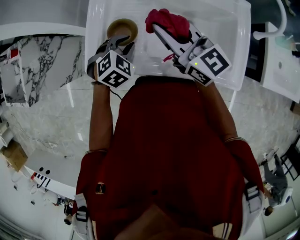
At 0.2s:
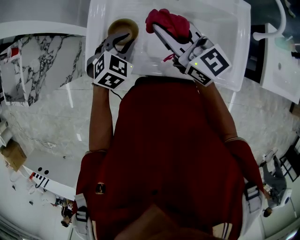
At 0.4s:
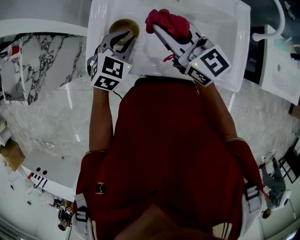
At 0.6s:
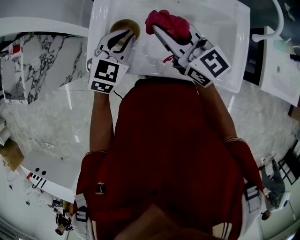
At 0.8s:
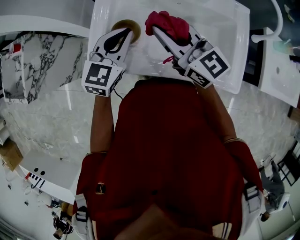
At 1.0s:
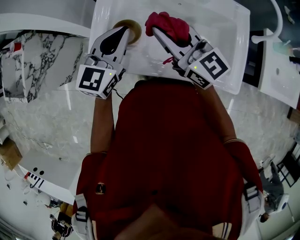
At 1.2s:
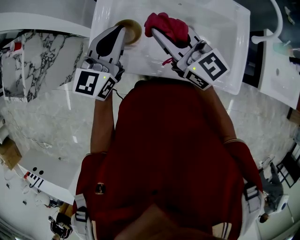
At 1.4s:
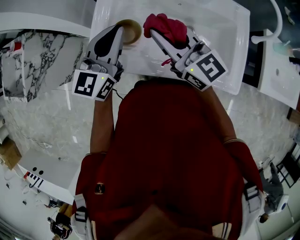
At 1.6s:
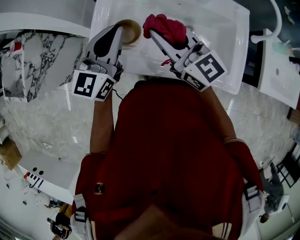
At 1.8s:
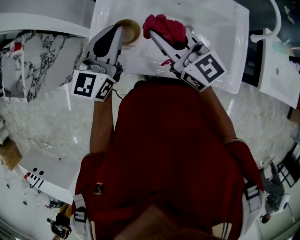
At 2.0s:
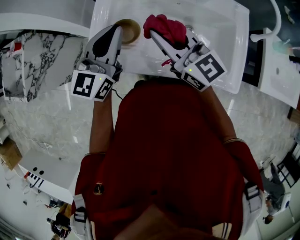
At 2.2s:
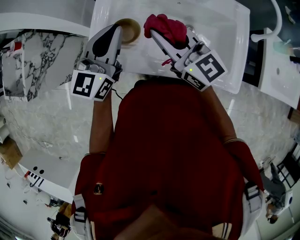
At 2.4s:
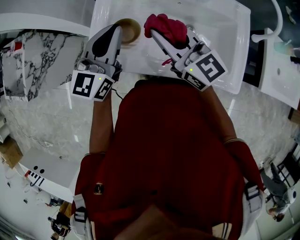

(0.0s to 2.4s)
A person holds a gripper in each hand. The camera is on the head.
0.0s - 1.2s: The left gripper is displaced upward by some 20 cm, and angles its fingers upward, by roughly 50 degrees.
1.2s - 2.4s: Both grippers stay put.

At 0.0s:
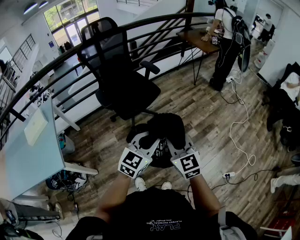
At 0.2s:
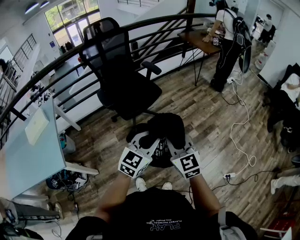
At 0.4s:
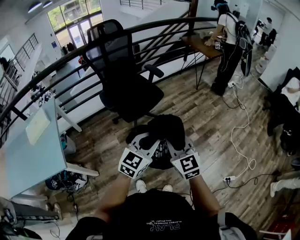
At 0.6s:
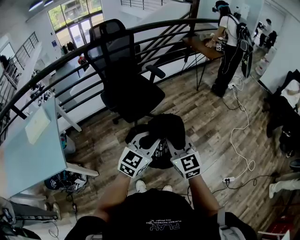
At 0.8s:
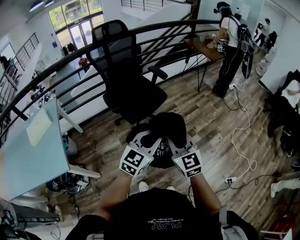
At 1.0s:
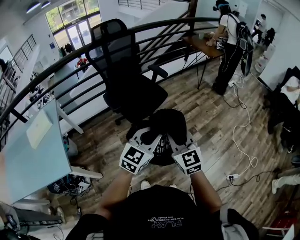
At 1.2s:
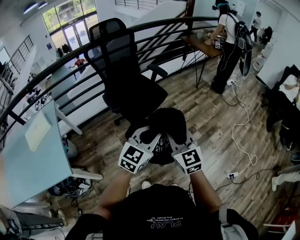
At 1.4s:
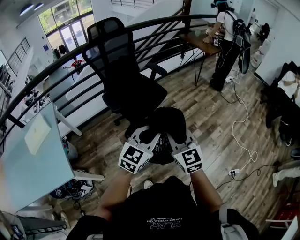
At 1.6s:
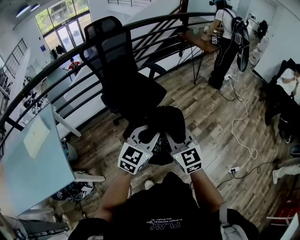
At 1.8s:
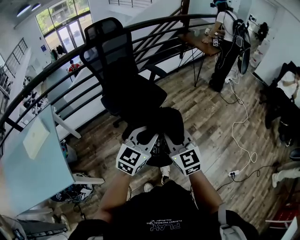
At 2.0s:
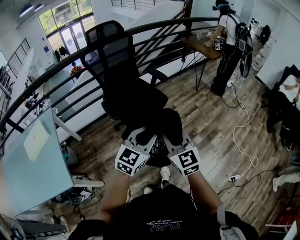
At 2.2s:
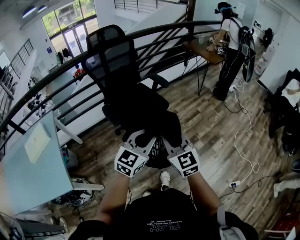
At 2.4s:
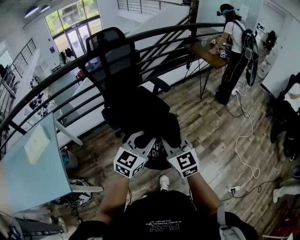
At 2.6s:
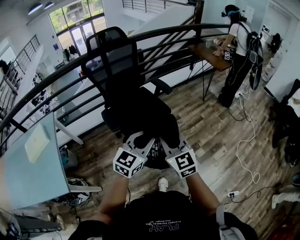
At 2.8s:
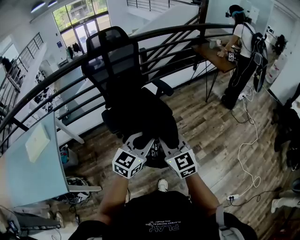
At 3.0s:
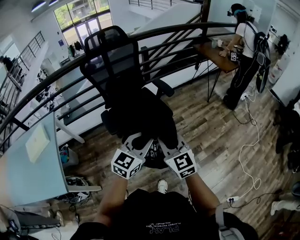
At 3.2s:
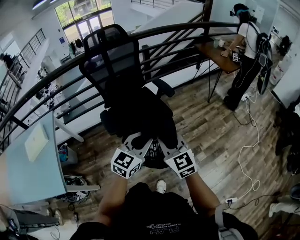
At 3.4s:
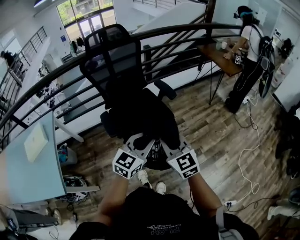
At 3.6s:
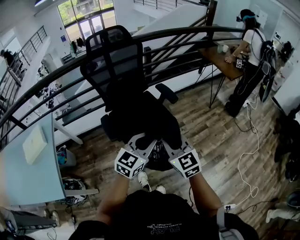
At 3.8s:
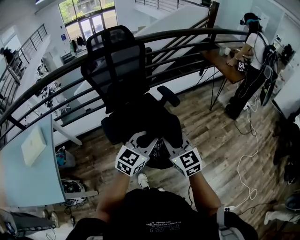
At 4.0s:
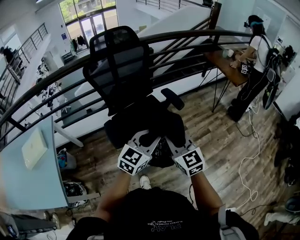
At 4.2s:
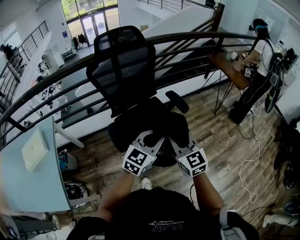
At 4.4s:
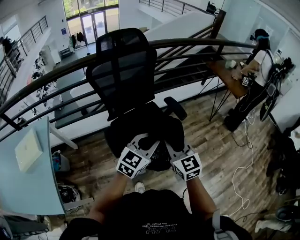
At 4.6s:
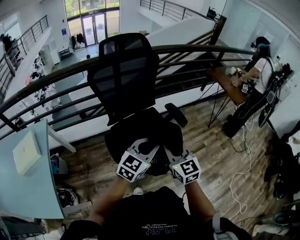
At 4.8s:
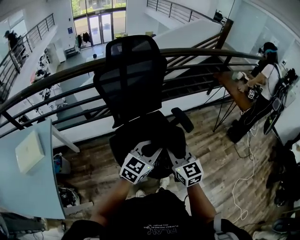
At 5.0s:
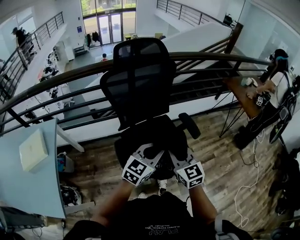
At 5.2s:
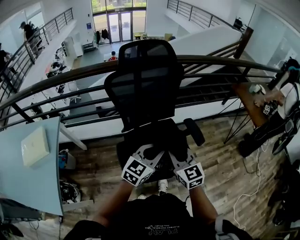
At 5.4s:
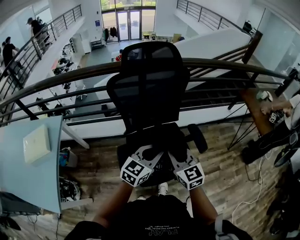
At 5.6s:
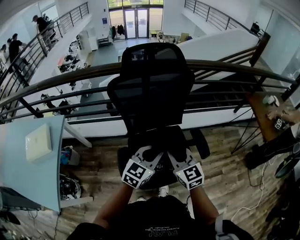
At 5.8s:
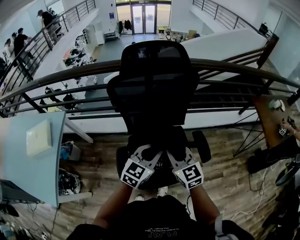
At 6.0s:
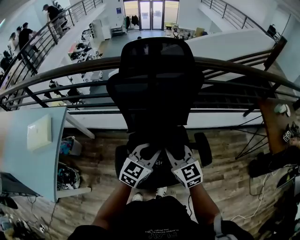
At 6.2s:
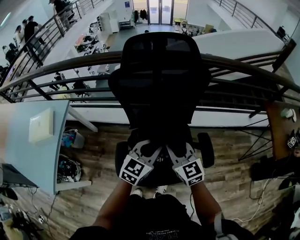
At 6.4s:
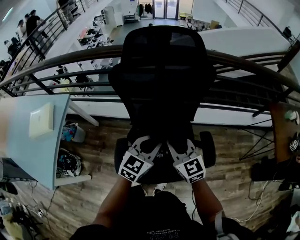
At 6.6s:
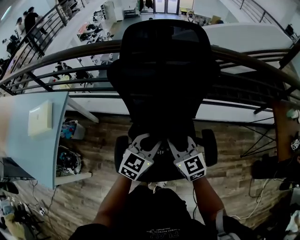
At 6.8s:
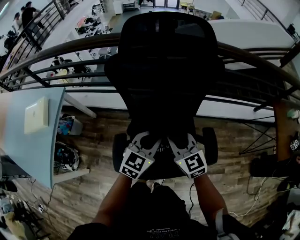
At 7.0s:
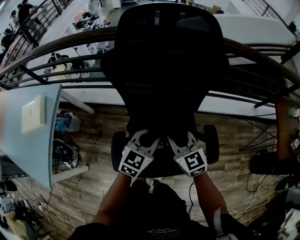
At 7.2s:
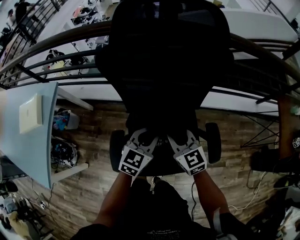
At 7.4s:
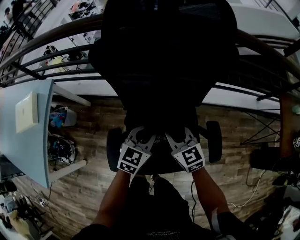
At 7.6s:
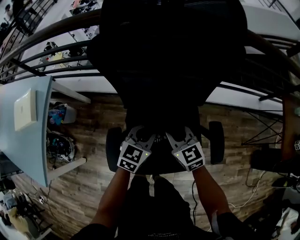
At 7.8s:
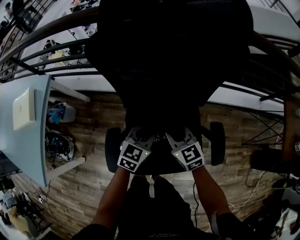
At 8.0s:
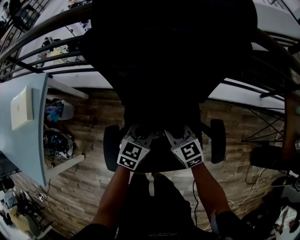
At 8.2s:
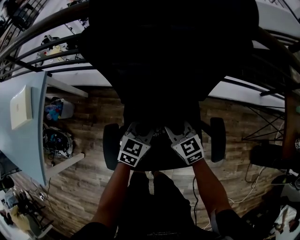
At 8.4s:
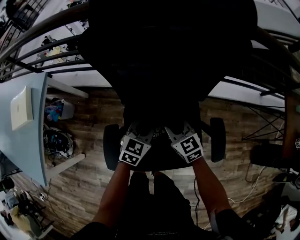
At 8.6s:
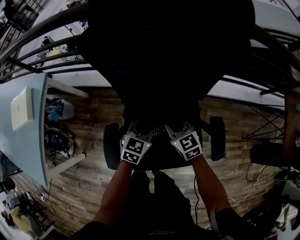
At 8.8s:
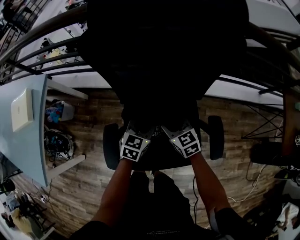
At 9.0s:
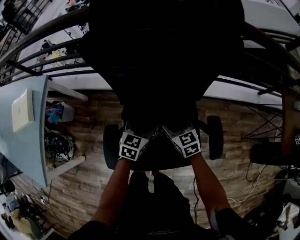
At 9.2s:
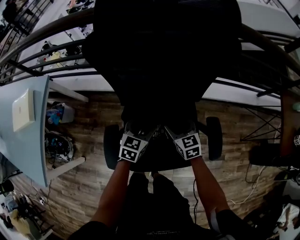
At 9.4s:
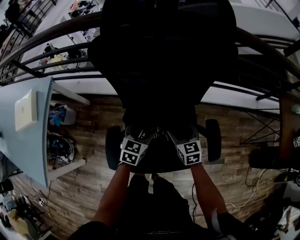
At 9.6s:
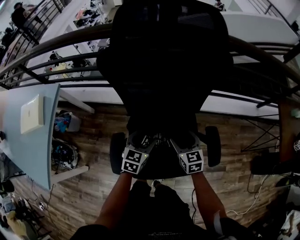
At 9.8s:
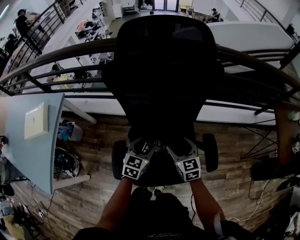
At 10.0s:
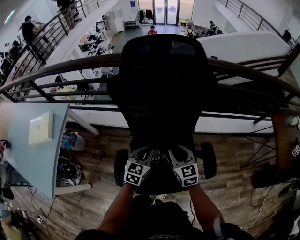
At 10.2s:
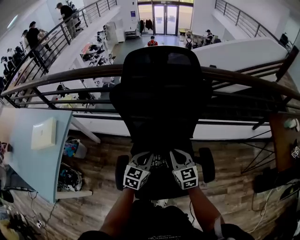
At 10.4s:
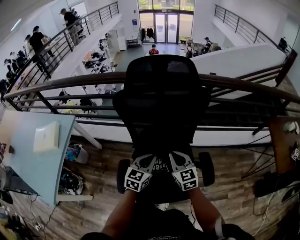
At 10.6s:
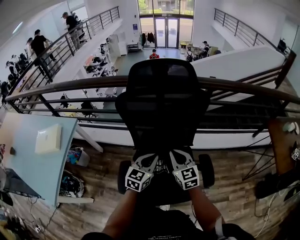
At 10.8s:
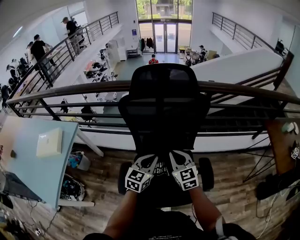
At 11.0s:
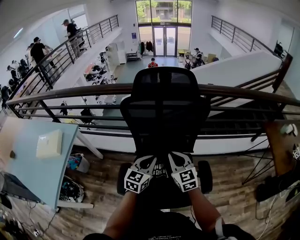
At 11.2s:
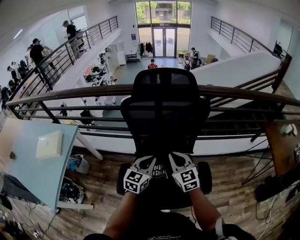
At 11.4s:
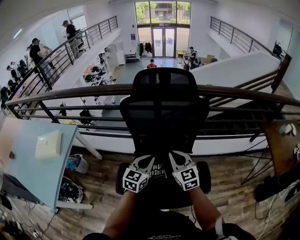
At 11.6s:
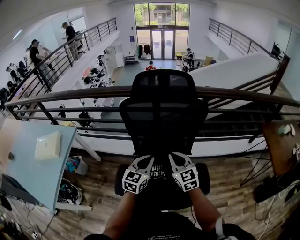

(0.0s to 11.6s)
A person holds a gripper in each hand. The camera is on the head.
0.0s - 1.4s: The two grippers go some 15 cm to the left.
1.4s - 2.8s: Both grippers move forward, roughly 20 cm.
2.8s - 4.4s: Both grippers move forward and to the left, roughly 25 cm.
4.4s - 5.8s: Both grippers move forward, some 20 cm. The left gripper swivels approximately 20 degrees; the right gripper changes its angle by approximately 20 degrees.
5.8s - 7.2s: Both grippers travel together downward and forward, about 15 cm.
7.2s - 8.8s: The grippers both shift downward by about 15 cm. The right gripper opens up; the left gripper opens up.
8.8s - 10.2s: The left gripper heads upward and backward, covering some 15 cm, and closes. Meanwhile the right gripper heads upward, covering about 15 cm, changes its angle by approximately 20 degrees, and closes its fingers.
10.2s - 11.6s: Both grippers move upward, about 10 cm.

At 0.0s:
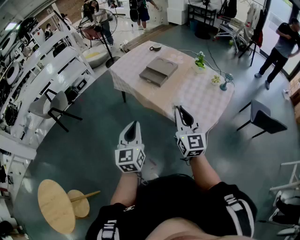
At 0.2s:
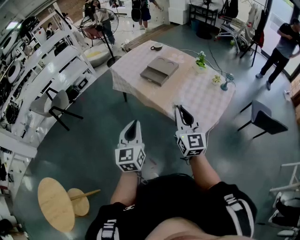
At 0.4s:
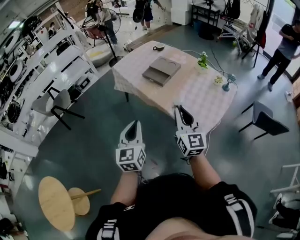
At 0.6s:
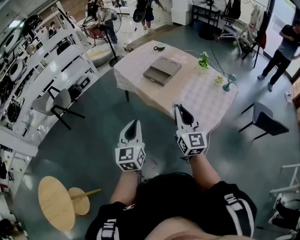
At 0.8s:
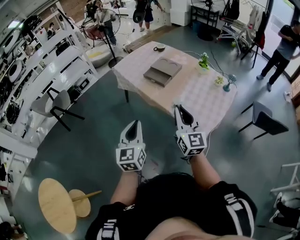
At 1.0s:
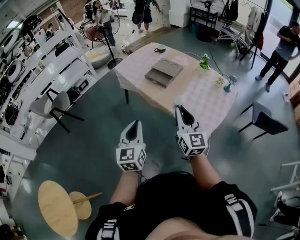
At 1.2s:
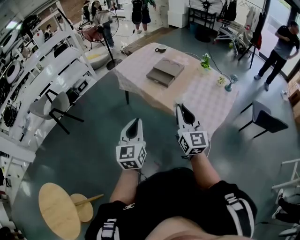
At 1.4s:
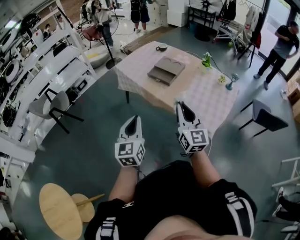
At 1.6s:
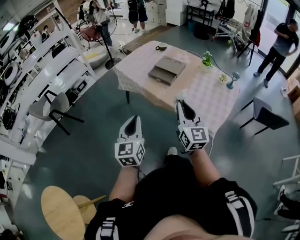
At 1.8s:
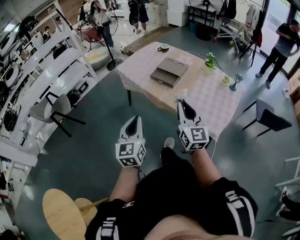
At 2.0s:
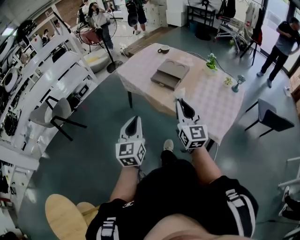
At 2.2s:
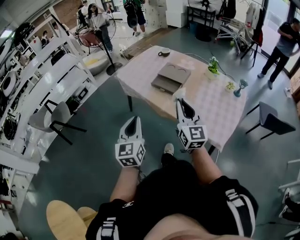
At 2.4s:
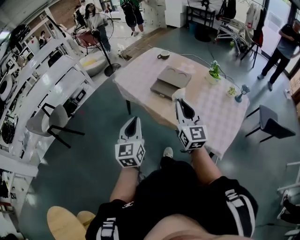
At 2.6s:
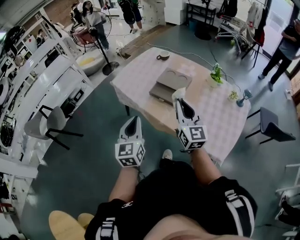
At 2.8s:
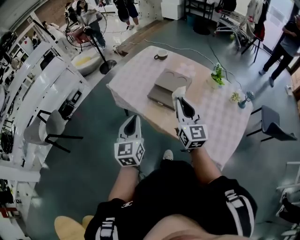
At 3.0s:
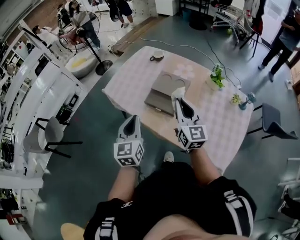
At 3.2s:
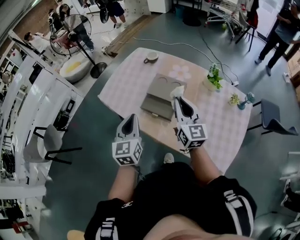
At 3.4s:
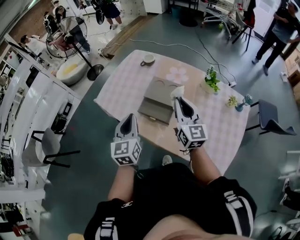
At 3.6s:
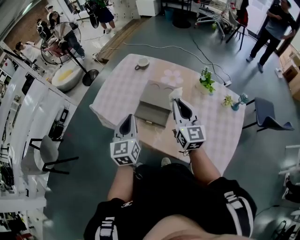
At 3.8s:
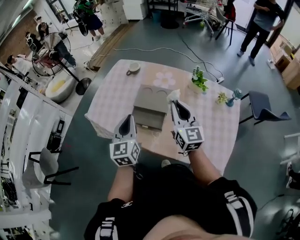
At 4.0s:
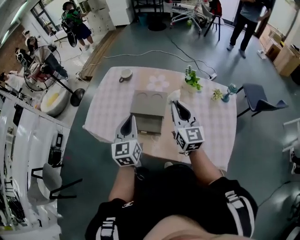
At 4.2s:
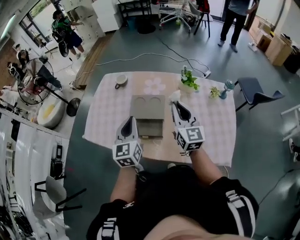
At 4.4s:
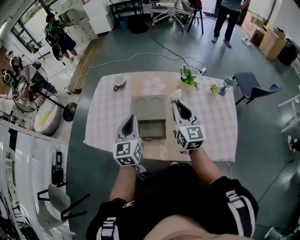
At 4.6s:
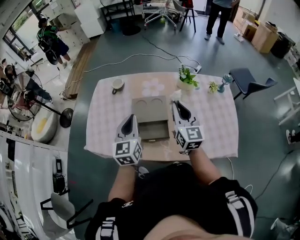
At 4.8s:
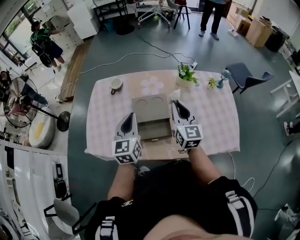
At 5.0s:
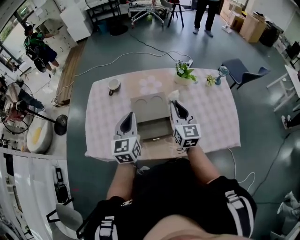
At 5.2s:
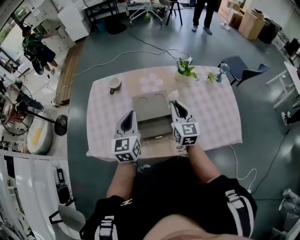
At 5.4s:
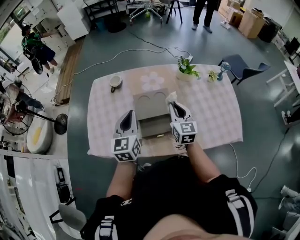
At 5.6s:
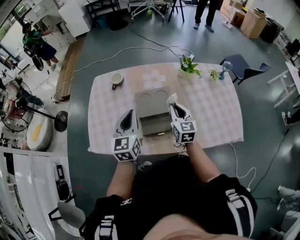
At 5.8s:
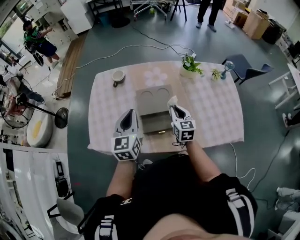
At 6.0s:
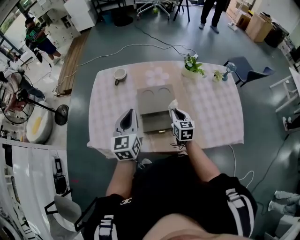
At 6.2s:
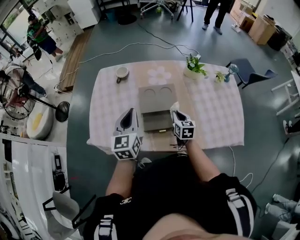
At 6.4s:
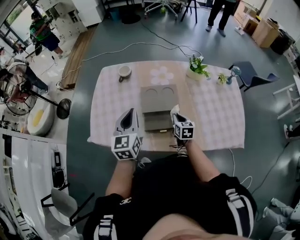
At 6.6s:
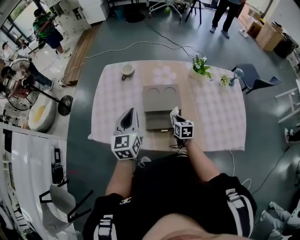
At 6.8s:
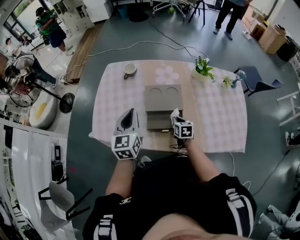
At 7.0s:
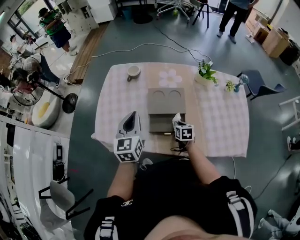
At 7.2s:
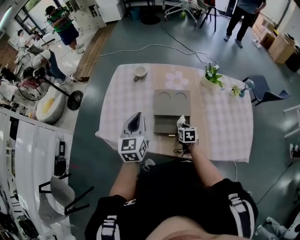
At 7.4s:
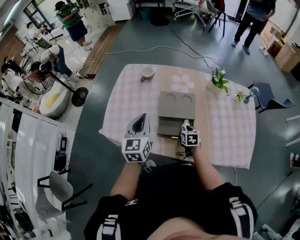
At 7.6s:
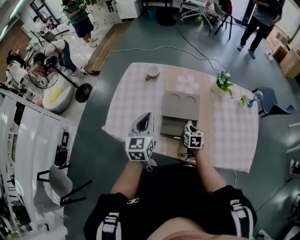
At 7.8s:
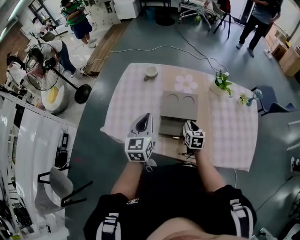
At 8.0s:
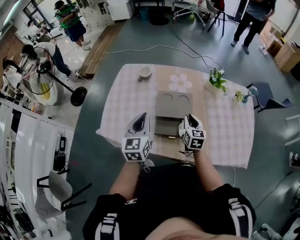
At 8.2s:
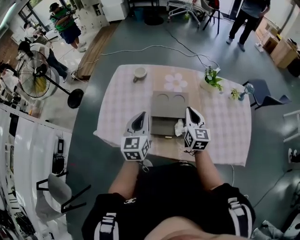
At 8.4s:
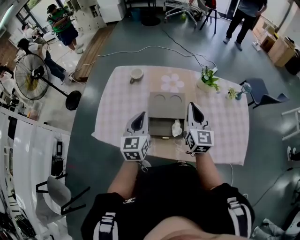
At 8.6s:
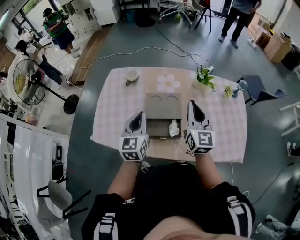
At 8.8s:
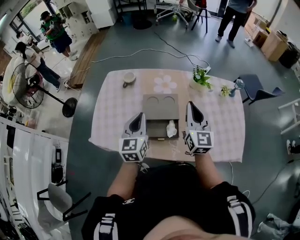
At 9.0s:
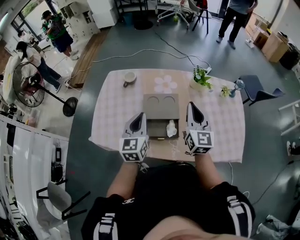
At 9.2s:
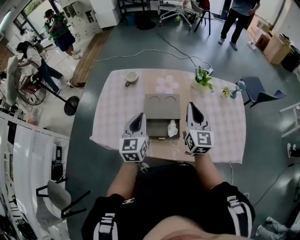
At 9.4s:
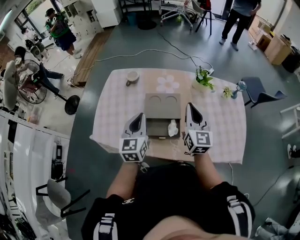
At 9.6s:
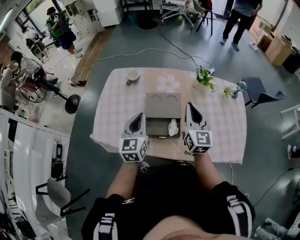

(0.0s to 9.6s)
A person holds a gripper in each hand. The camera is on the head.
0.0s - 1.6s: The two grippers go some 10 cm to the left.
1.6s - 3.2s: The two grippers travel together, forward, roughly 50 cm.
3.2s - 4.8s: The right gripper ends up about 10 cm from where it was, and turns by about 30 degrees; the left gripper moves roughly 20 cm, and changes its angle by some 30 degrees.
4.8s - 6.4s: The left gripper is displaced to the left by approximately 5 cm. Meanwhile the right gripper heads downward, covering some 25 cm, and tips its fingers downward by approximately 30 degrees.
6.4s - 8.0s: The right gripper travels upward by about 10 cm.
8.0s - 9.6s: The right gripper travels upward by approximately 20 cm, and swivels approximately 30 degrees; the left gripper moves some 5 cm.
